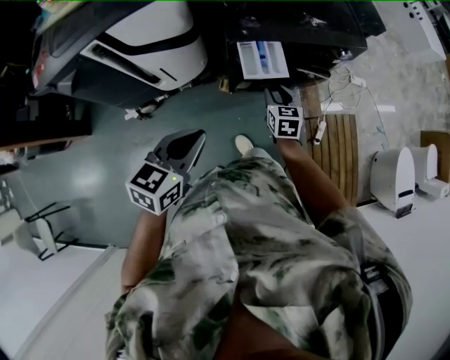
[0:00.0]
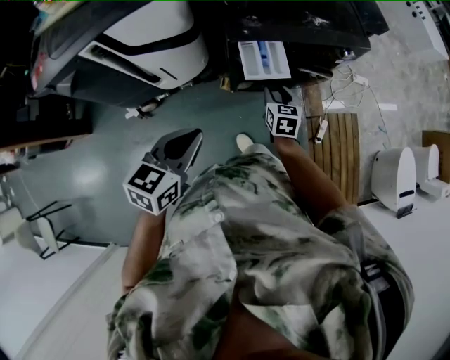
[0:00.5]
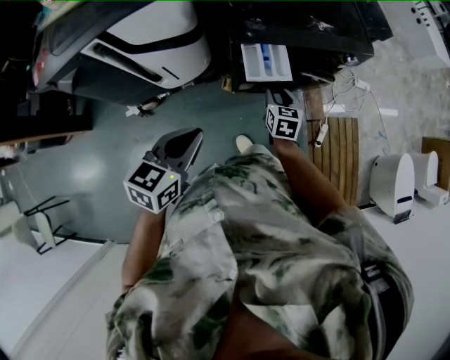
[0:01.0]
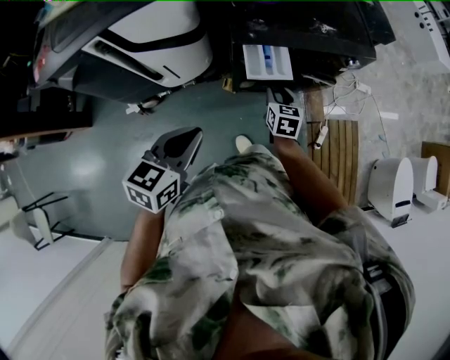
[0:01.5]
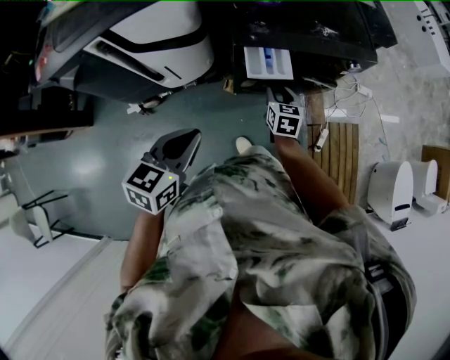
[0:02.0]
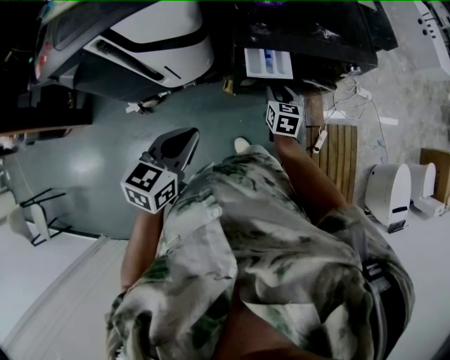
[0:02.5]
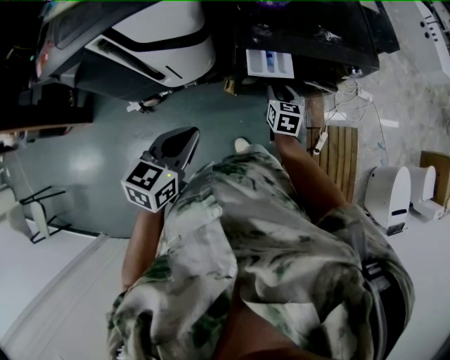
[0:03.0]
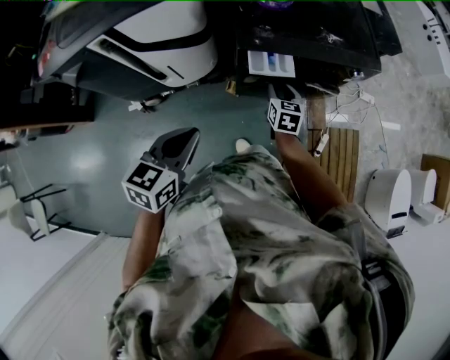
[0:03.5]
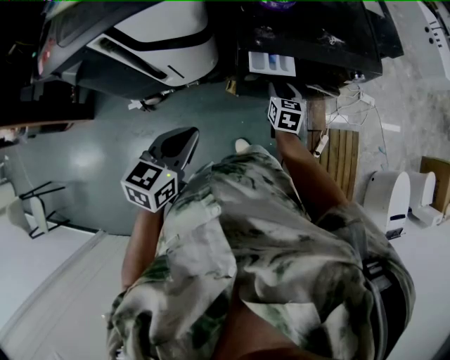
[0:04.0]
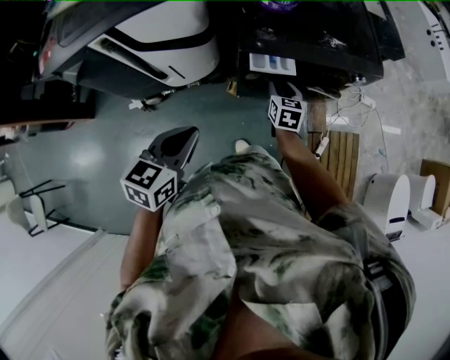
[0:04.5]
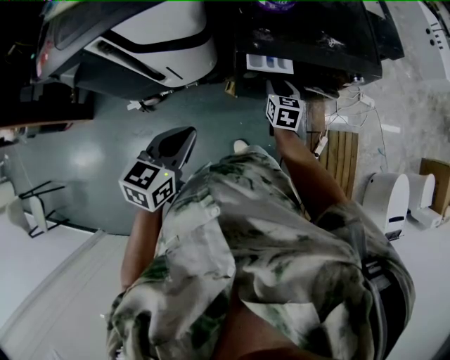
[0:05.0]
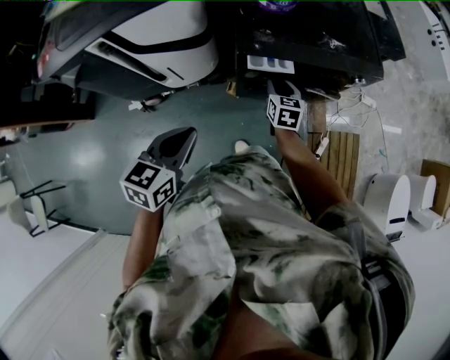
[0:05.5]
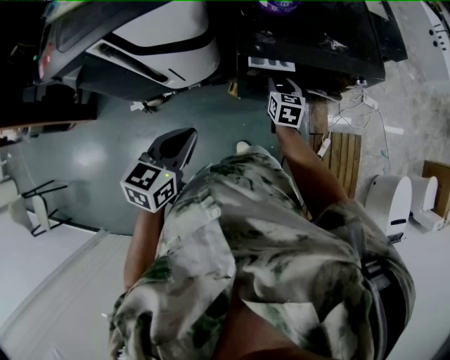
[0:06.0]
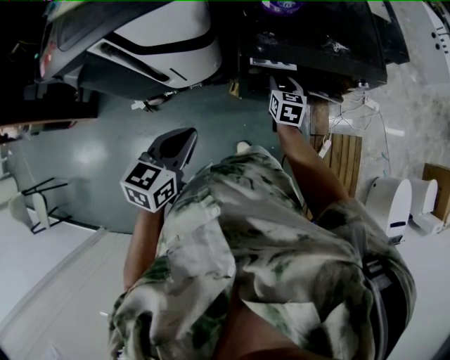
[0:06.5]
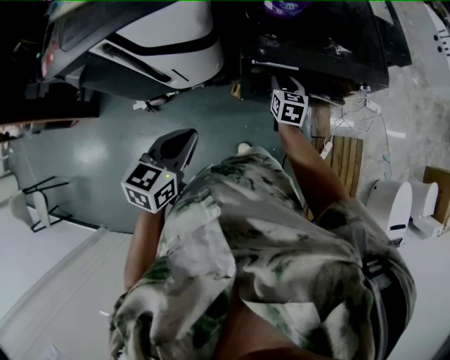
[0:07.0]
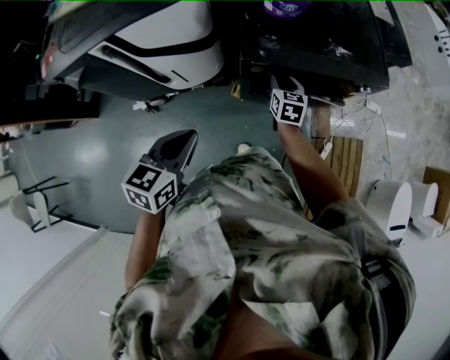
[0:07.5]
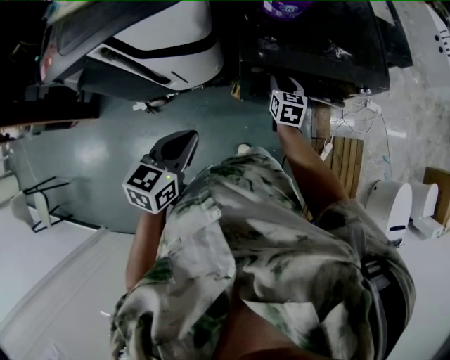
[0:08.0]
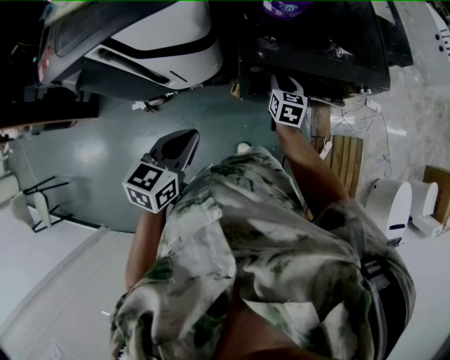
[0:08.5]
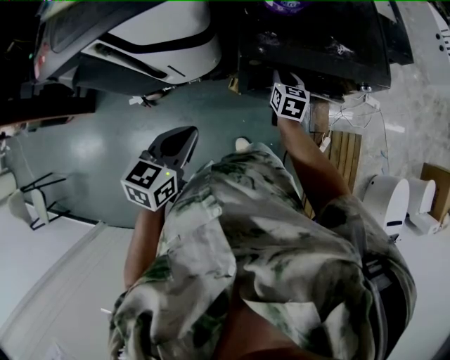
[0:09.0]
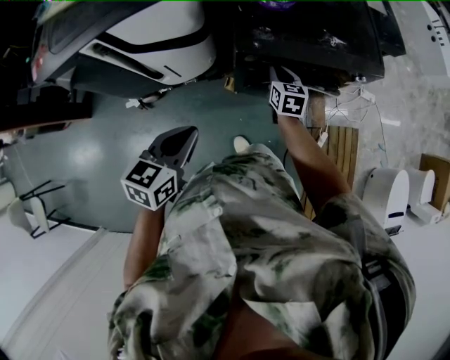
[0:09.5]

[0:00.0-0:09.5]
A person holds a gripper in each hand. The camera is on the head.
0:00.0 to 0:02.0: There are only small adjustments of the grippers.
0:02.0 to 0:04.0: The grippers stay close to where they were, moving slightly.
0:04.0 to 0:05.5: The grippers stay close to where they were, moving slightly.
0:05.5 to 0:07.5: The grippers stay close to where they were, moving slightly.
0:07.5 to 0:09.5: The grippers move only a little.

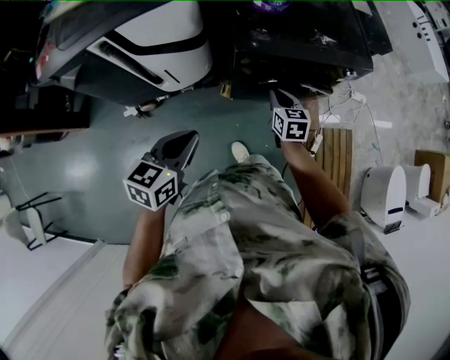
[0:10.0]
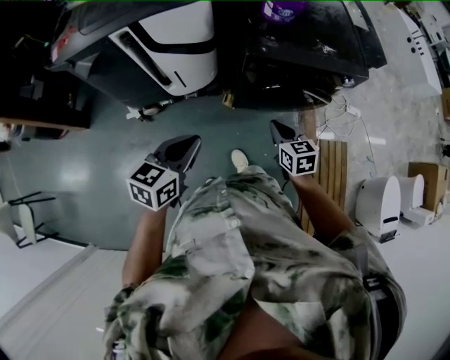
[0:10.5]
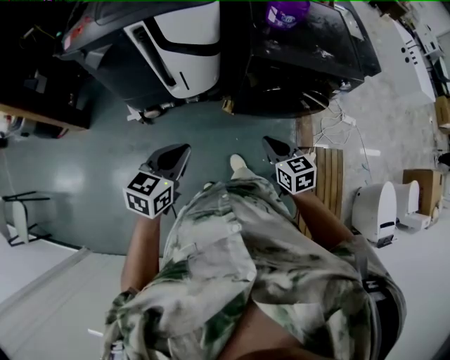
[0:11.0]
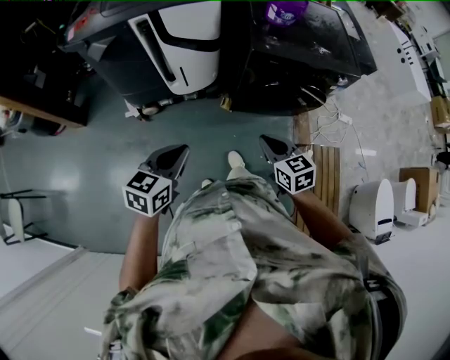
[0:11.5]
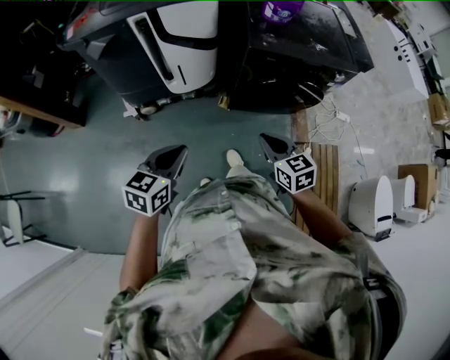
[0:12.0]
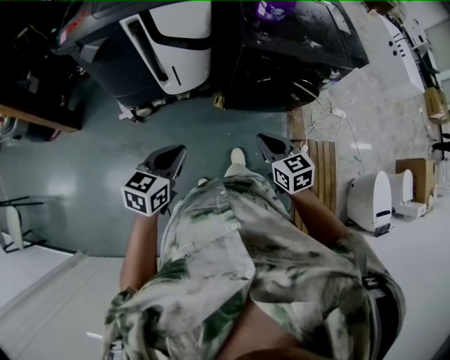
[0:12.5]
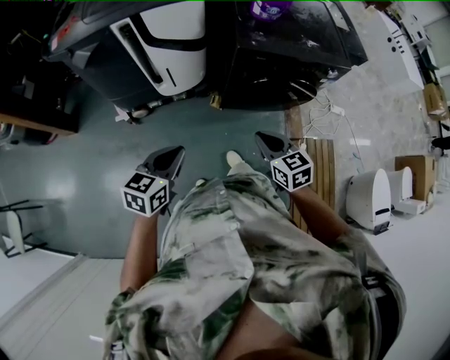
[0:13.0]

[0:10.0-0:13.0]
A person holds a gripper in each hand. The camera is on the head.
0:10.0 to 0:11.5: The left gripper heads backward and to the left, covering some 20 cm. Meanwhile the right gripper goes roughly 30 cm backward, and turns by approximately 20 degrees.
0:11.5 to 0:13.0: The grippers move only a little.

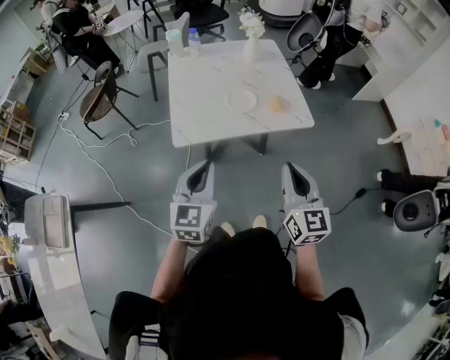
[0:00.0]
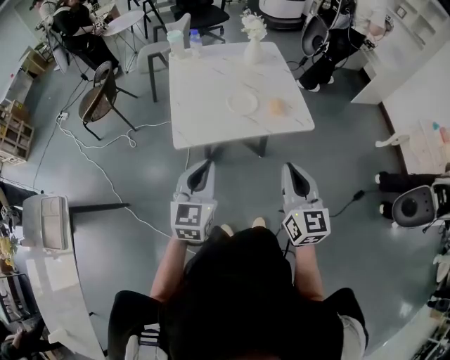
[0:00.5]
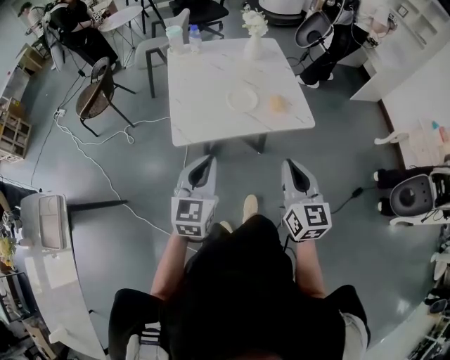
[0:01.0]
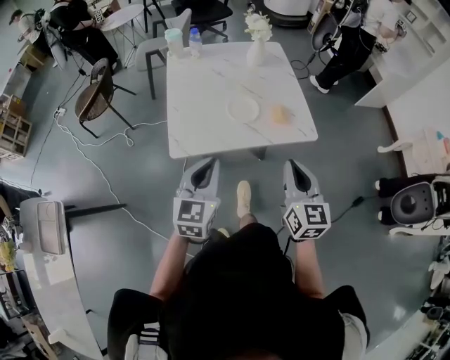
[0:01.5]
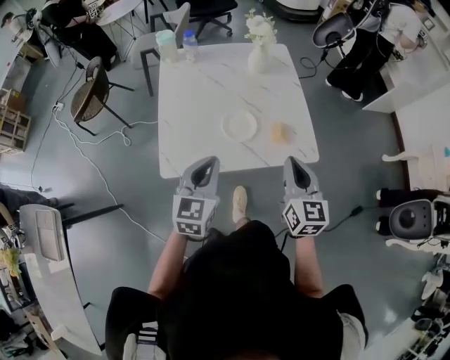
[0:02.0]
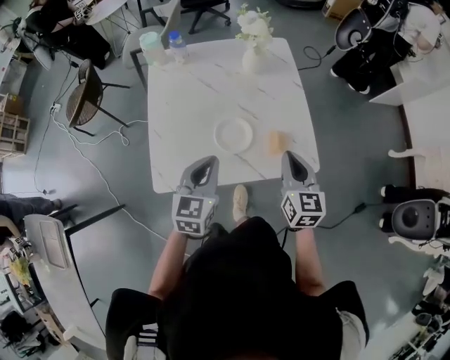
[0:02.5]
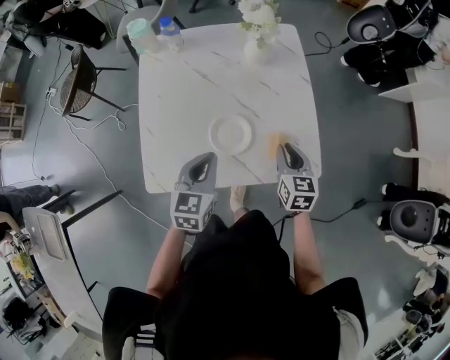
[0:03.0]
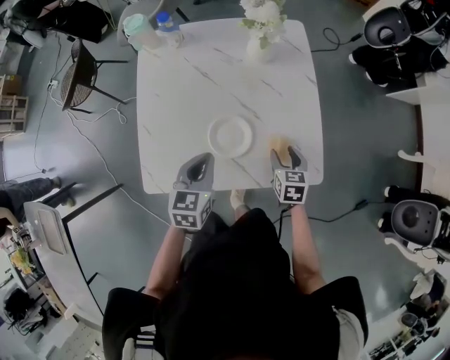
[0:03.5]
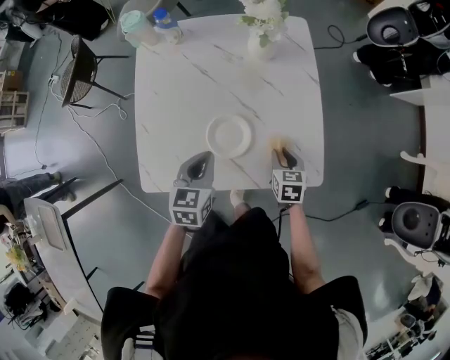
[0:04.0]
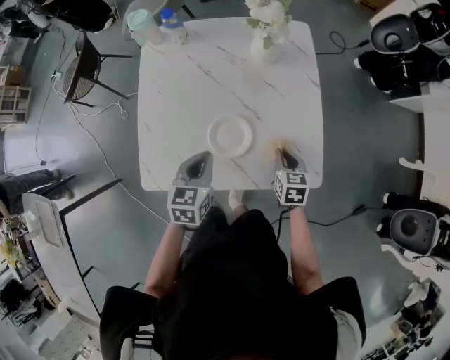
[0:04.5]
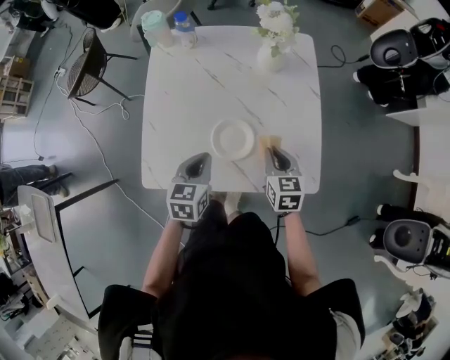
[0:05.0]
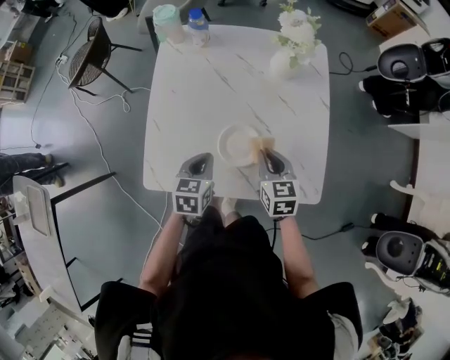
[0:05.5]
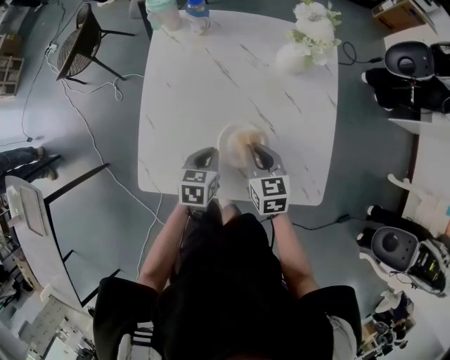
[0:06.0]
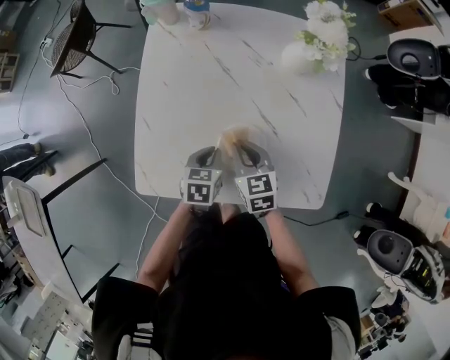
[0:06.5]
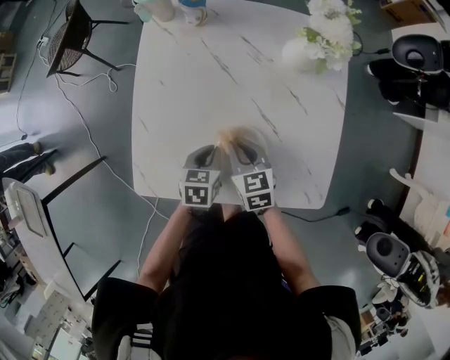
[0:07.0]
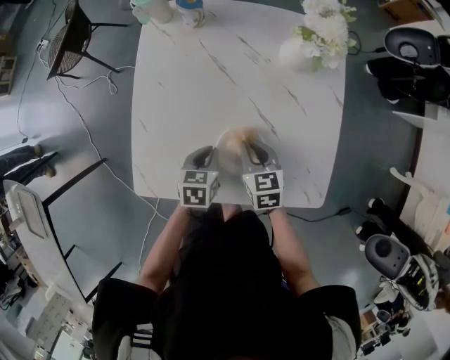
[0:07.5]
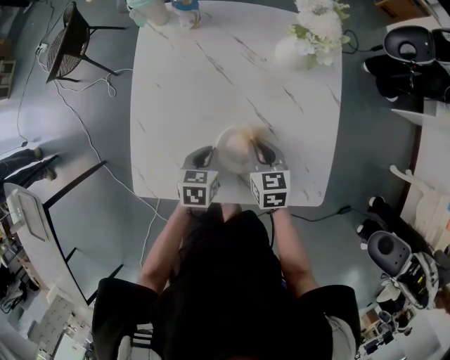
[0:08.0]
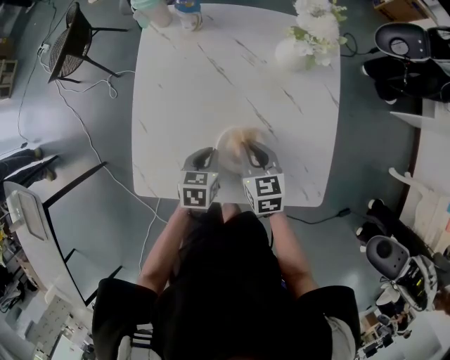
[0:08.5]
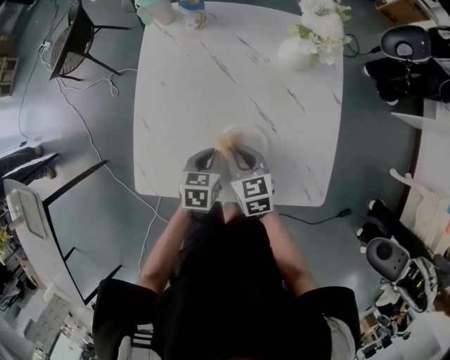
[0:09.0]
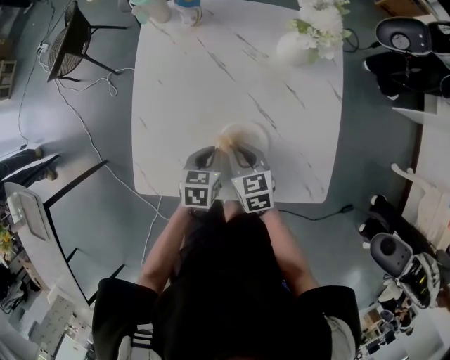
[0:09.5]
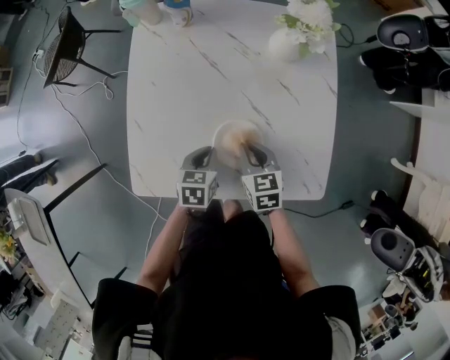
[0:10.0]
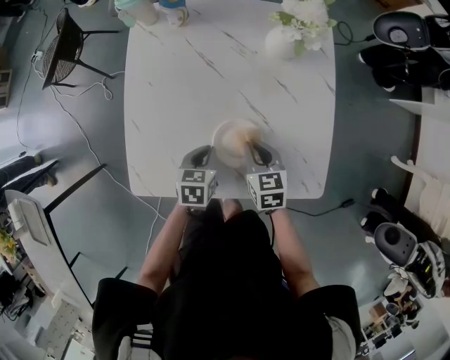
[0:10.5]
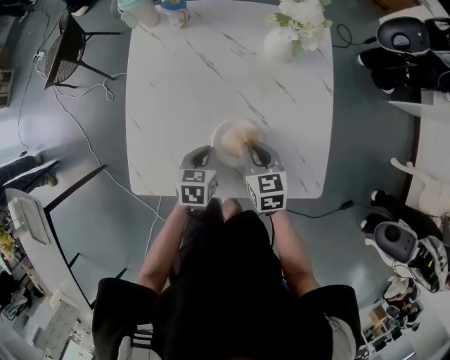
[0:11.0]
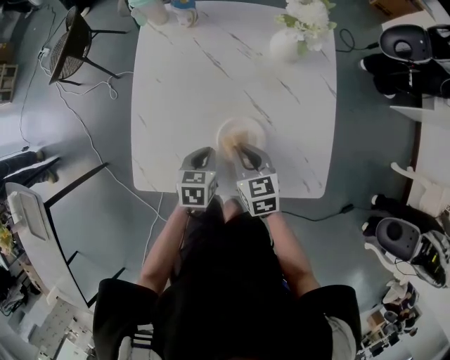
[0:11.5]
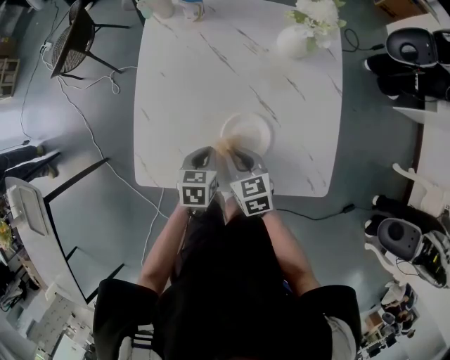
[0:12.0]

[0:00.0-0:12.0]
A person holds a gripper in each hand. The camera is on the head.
0:00.0 to 0:02.0: The two grippers go roughly 25 cm forward.
0:02.0 to 0:04.0: The left gripper goes roughly 20 cm forward and downward, and turns by roughly 20 degrees; the right gripper heads downward and forward, covering approximately 35 cm, angles its fingers downward, by approximately 40 degrees, and opens its fingers.
0:04.0 to 0:06.0: The left gripper moves downward, roughly 10 cm, while the right gripper goes about 15 cm to the left, and rotates roughly 20 degrees.
0:06.0 to 0:08.0: The right gripper changes place by approximately 5 cm.
0:10.0 to 0:12.0: The right gripper goes some 5 cm to the left.

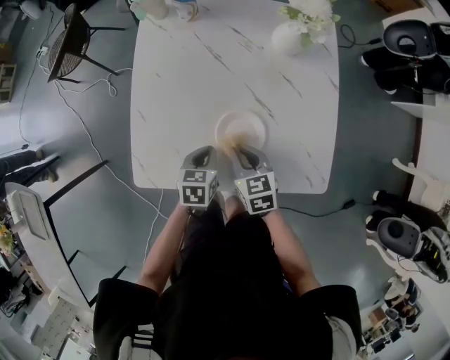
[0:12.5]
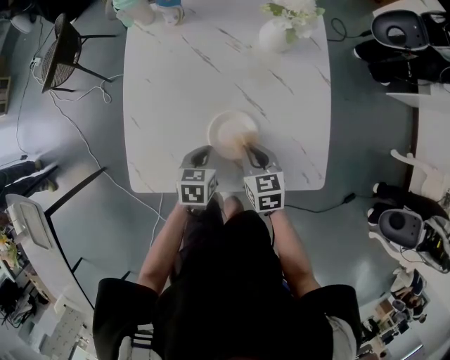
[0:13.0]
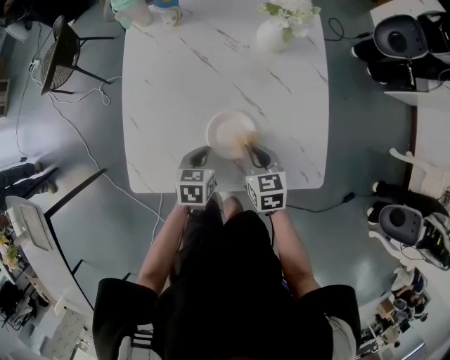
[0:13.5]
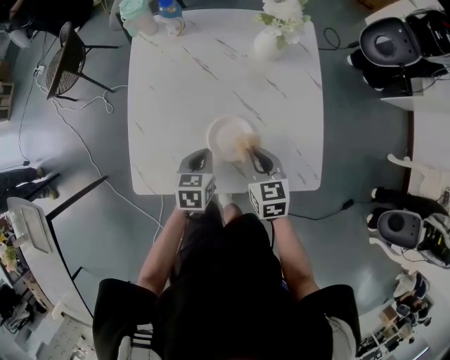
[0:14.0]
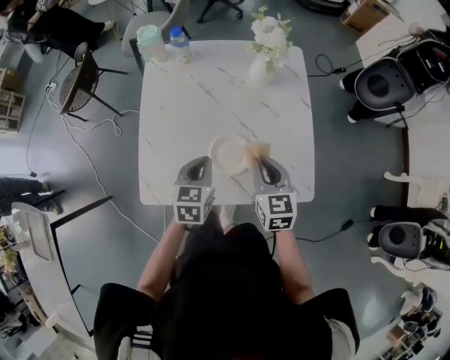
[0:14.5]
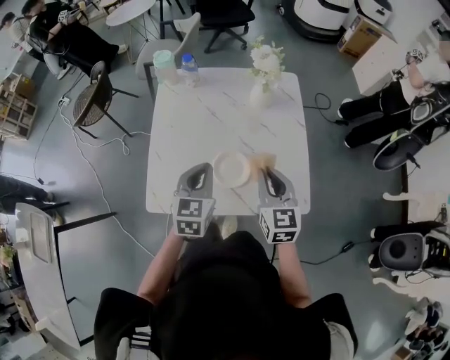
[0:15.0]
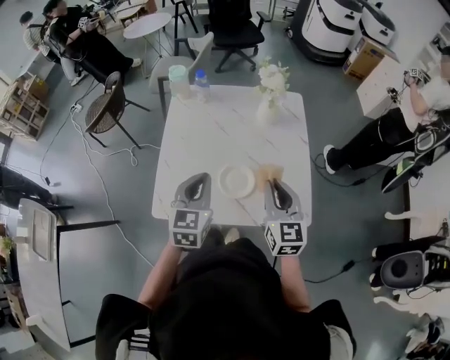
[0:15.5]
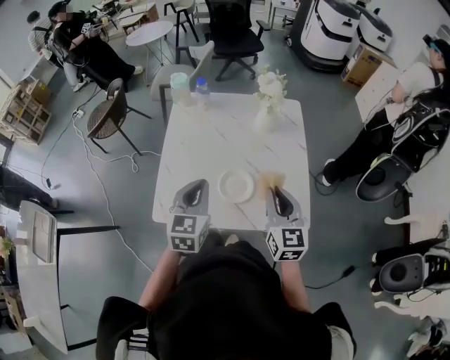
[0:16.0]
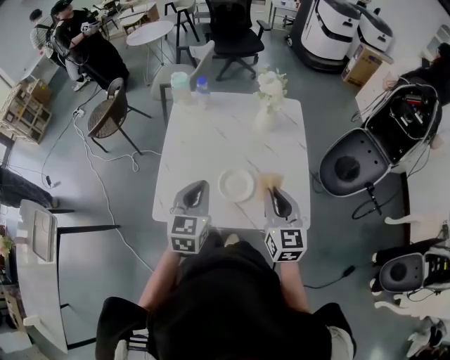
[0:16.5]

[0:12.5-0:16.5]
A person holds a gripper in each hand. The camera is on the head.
0:12.5 to 0:14.5: The right gripper moves upward and to the right, roughly 15 cm, and changes its angle by approximately 20 degrees; the left gripper moves upward, some 15 cm.
0:14.5 to 0:16.5: Both grippers move upward and backward, about 15 cm.
